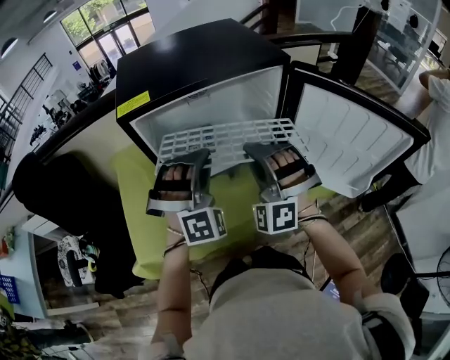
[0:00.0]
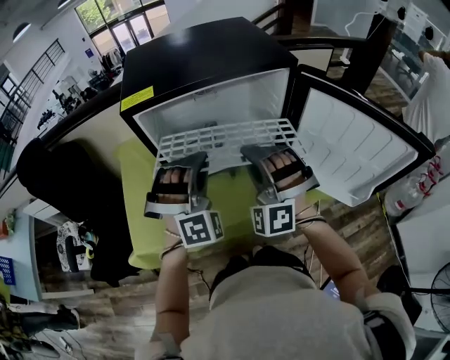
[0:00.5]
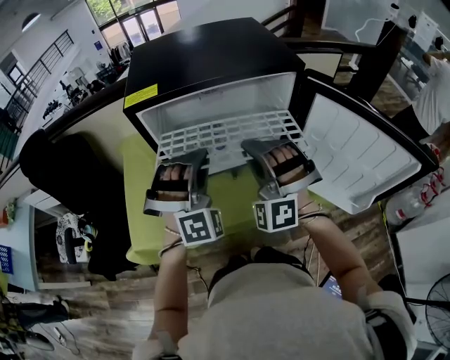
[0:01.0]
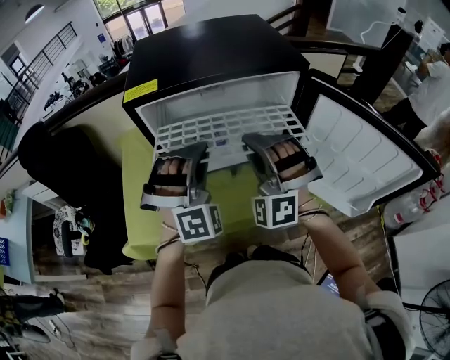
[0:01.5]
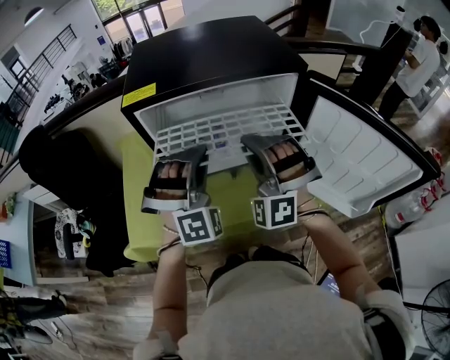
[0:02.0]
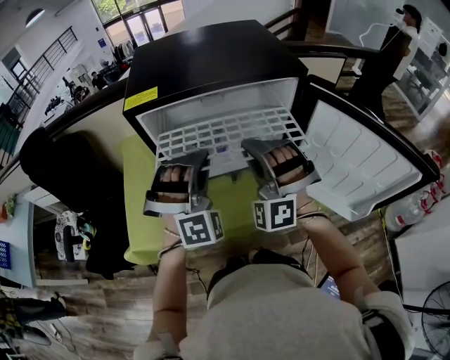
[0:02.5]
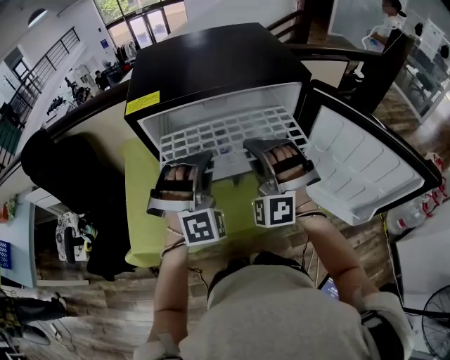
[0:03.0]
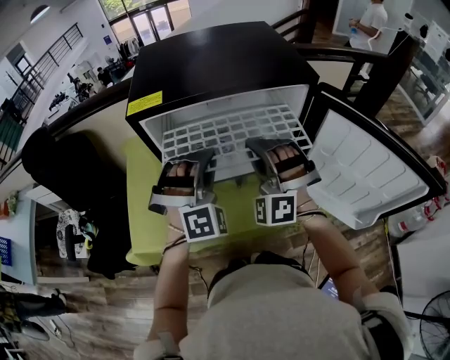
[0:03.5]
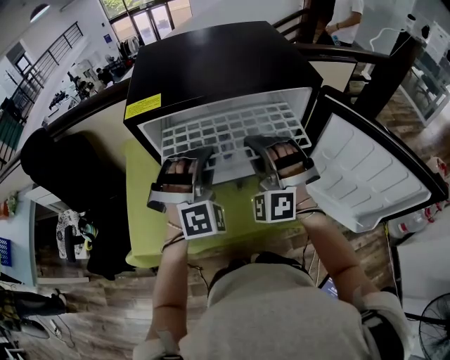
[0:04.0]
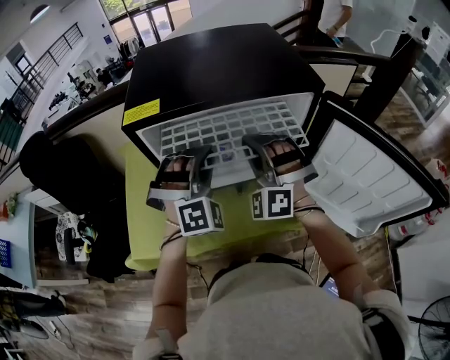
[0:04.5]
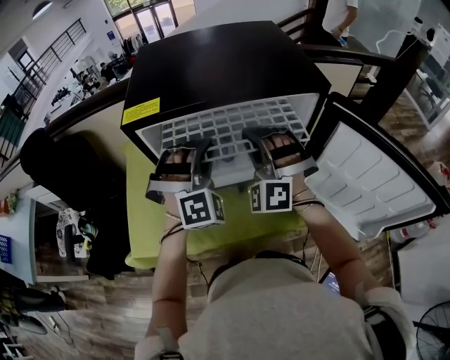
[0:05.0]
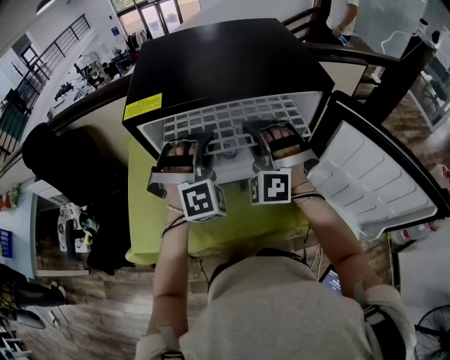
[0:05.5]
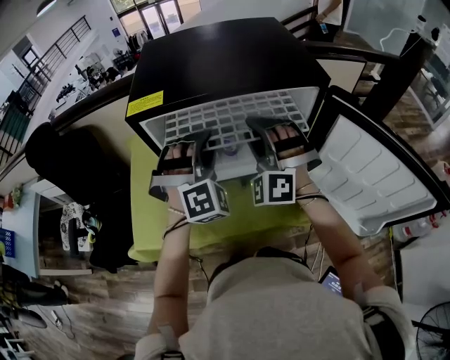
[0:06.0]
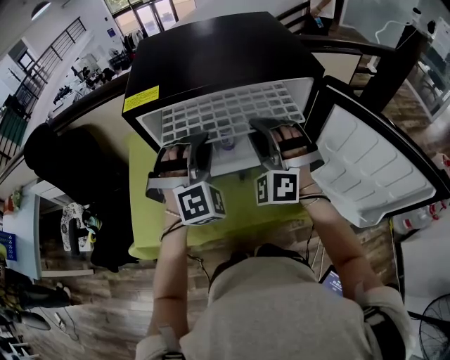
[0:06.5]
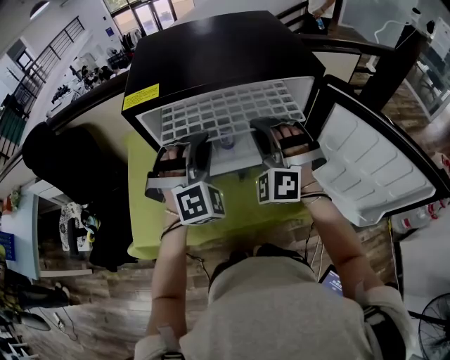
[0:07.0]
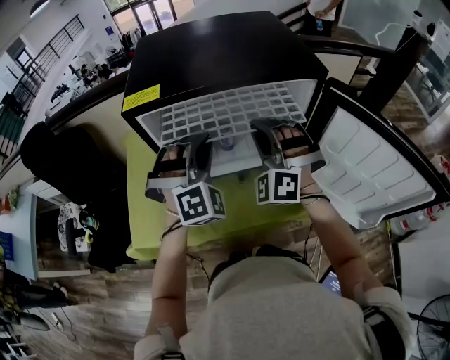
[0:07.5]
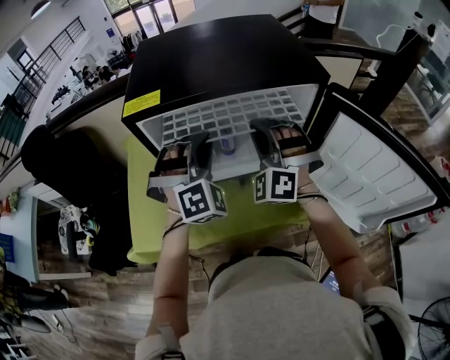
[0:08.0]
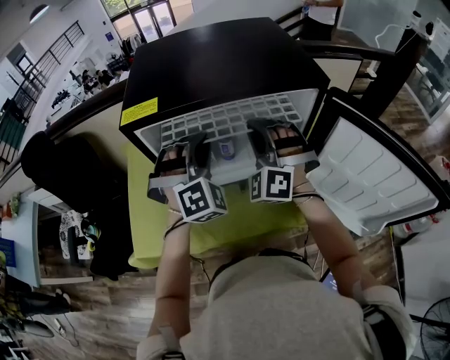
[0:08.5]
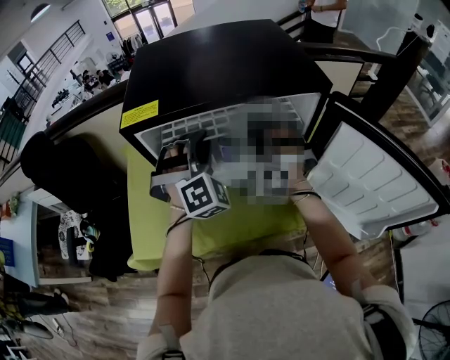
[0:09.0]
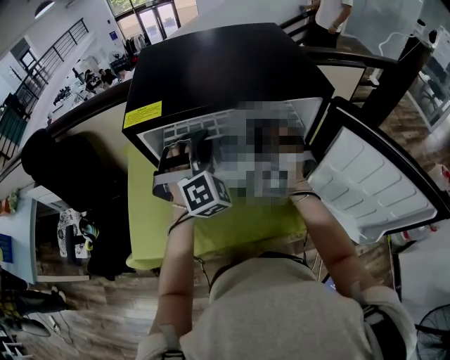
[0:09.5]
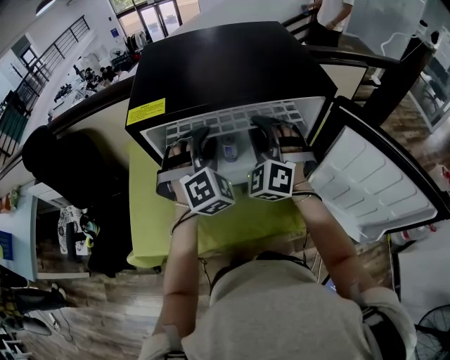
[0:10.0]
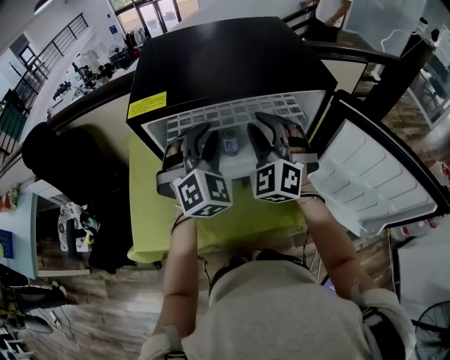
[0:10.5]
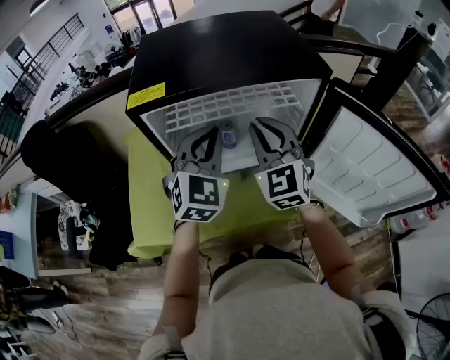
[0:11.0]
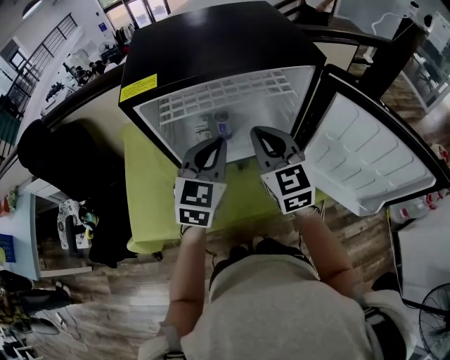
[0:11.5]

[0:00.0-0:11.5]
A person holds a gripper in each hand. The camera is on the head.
0:00.0 to 0:02.0: The grippers move only a little.
0:02.0 to 0:04.0: The left gripper changes place by roughly 5 cm. The right gripper moves forward, approximately 5 cm.
0:04.0 to 0:06.0: The right gripper opens its fingers. Meanwhile the left gripper opens its fingers.
0:06.0 to 0:07.5: The right gripper closes its fingers.
0:07.5 to 0:09.5: The grippers both shift forward by approximately 5 cm.
0:09.5 to 0:11.5: Both grippers move backward, some 10 cm. The left gripper twists some 50 degrees counterclockwise, seen from behind. Meanwhile the right gripper twists some 60 degrees clockwise, seen from behind.

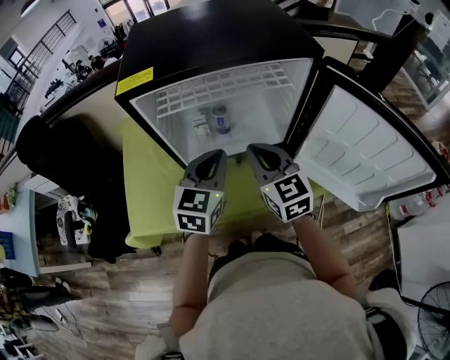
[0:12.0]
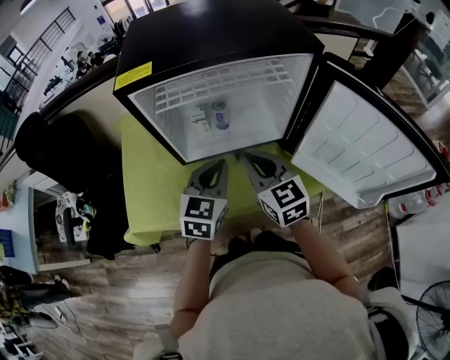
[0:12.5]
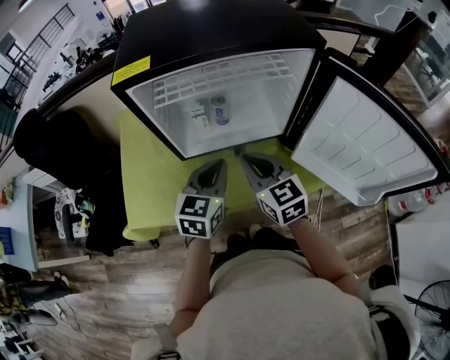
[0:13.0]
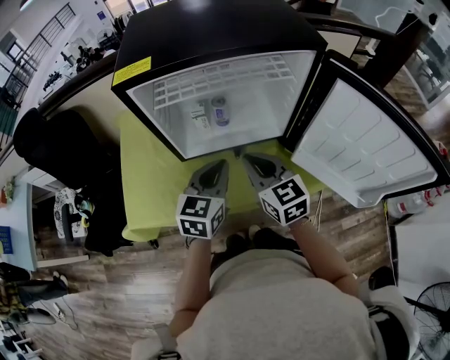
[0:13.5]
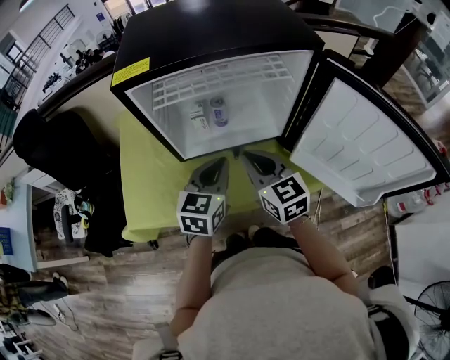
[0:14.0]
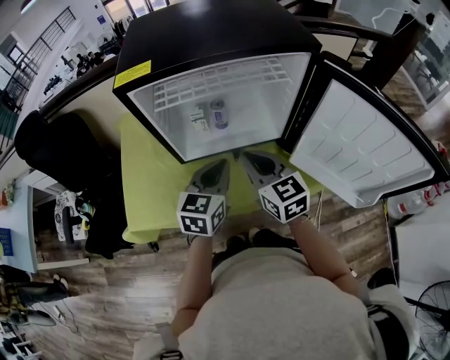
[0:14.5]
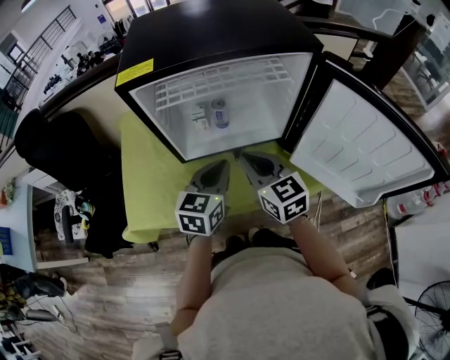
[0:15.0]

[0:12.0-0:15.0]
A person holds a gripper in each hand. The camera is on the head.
0:12.0 to 0:13.5: The left gripper shifts by about 5 cm.
0:13.5 to 0:15.0: The two grippers keep their place.

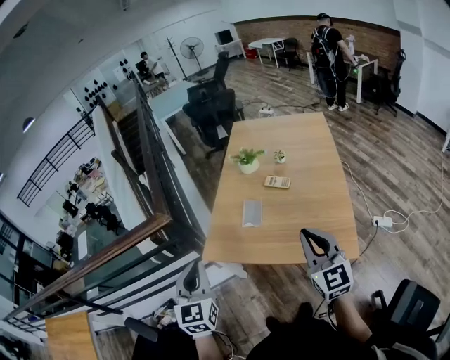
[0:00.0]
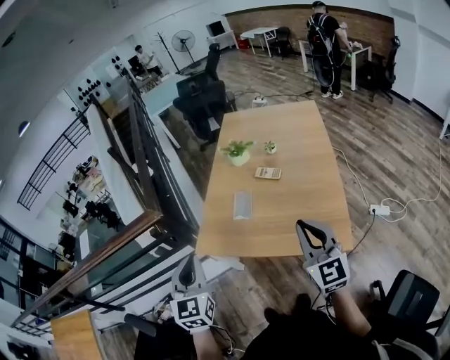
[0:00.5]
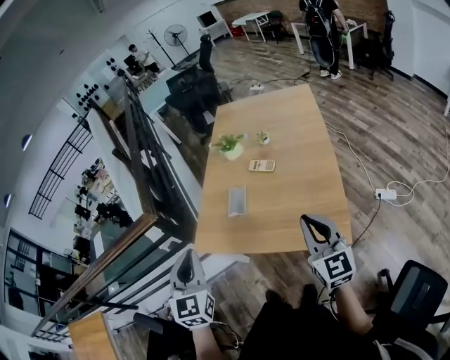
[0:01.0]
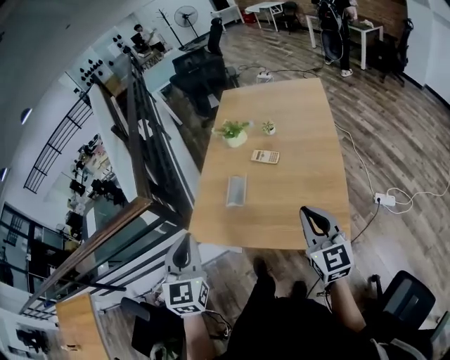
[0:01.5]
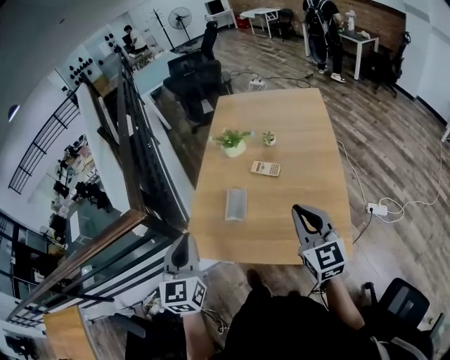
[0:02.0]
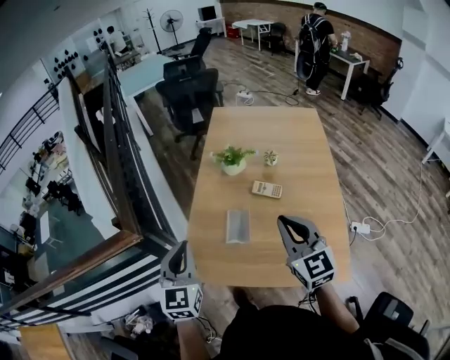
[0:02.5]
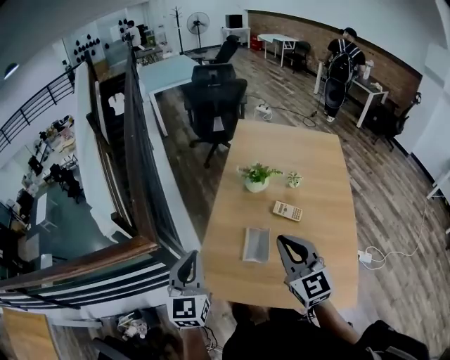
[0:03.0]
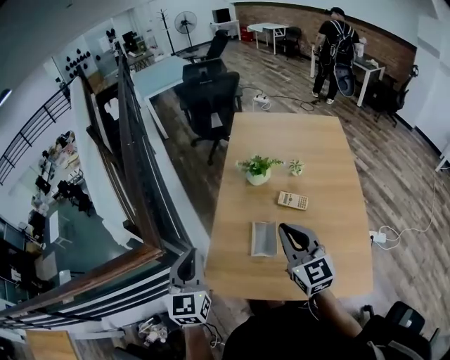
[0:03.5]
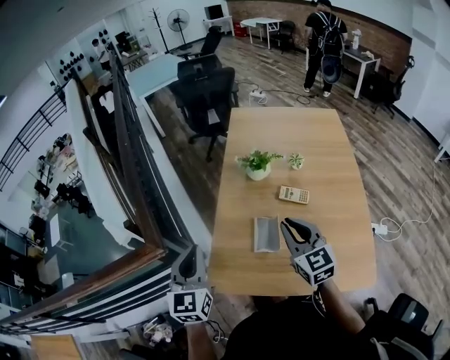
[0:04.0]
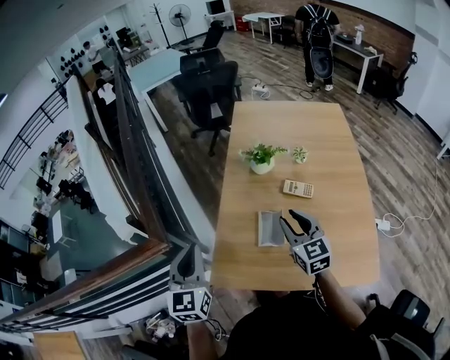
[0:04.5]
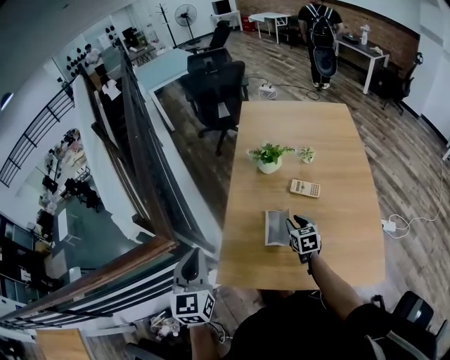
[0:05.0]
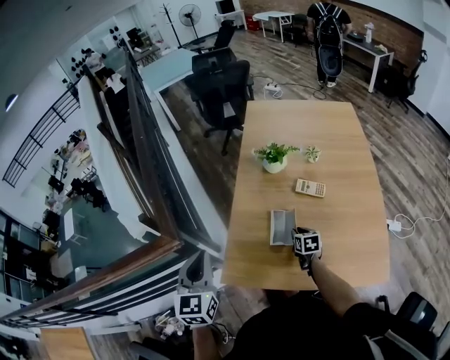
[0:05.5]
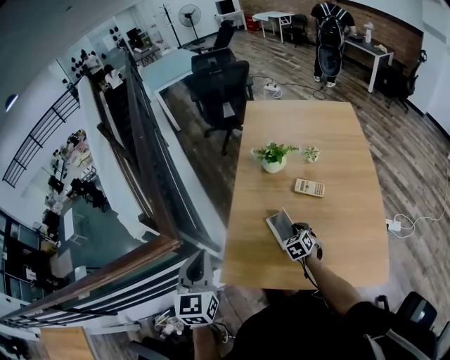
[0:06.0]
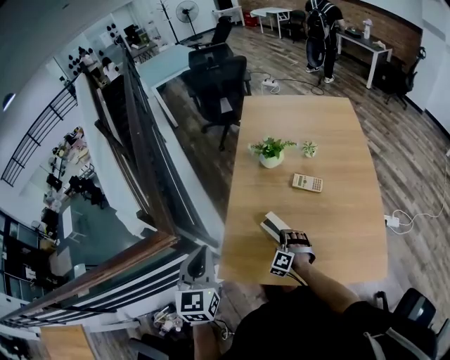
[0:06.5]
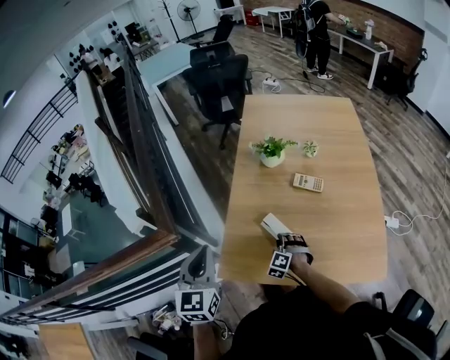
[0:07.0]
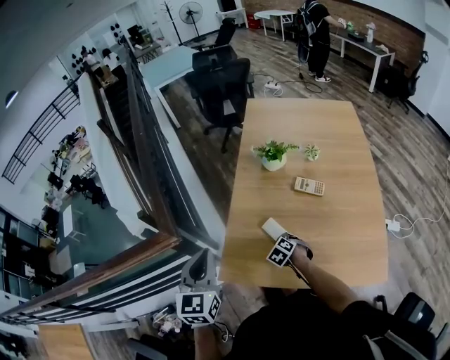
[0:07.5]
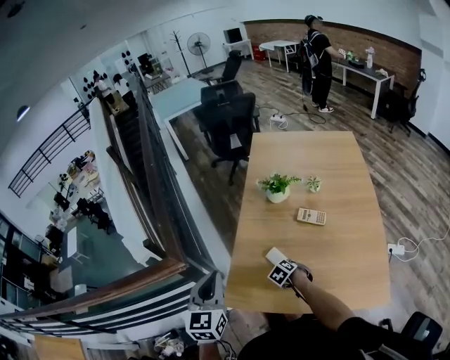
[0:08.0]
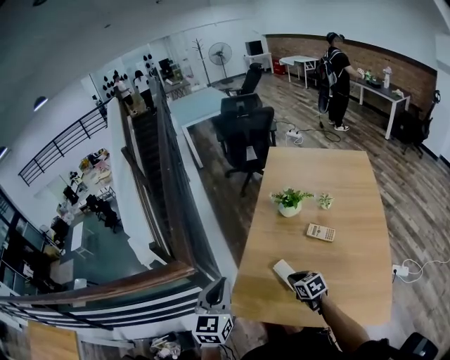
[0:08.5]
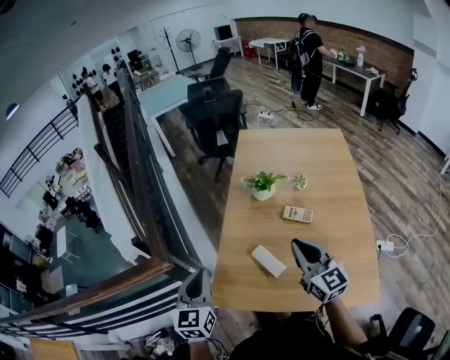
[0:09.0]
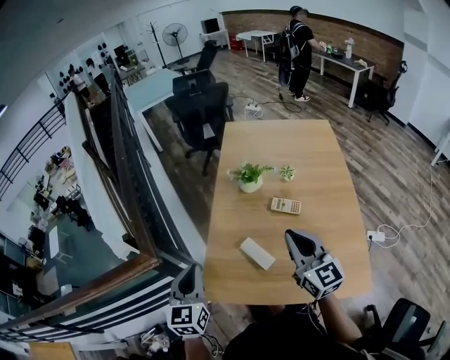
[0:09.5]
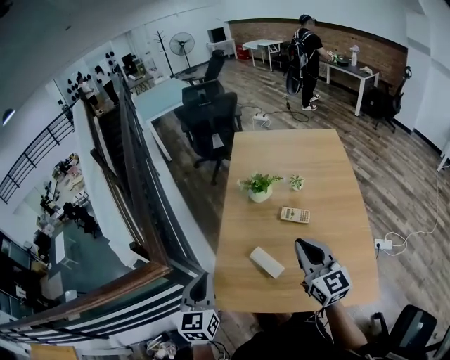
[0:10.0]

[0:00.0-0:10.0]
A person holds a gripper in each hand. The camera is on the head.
0:00.0 to 0:02.0: The grippers both shift forward and to the right by some 15 cm.
0:02.0 to 0:04.0: Both grippers move forward and to the left, approximately 25 cm.
0:04.0 to 0:06.0: The right gripper shifts approximately 25 cm downward, angles its fingers downward, by approximately 30 degrees, and opens, then closes again.
0:06.0 to 0:08.0: The right gripper travels to the left and downward by approximately 10 cm, and changes its angle by about 30 degrees.
0:08.0 to 0:10.0: The right gripper goes some 35 cm upward, and tips its fingers upward by some 70 degrees.

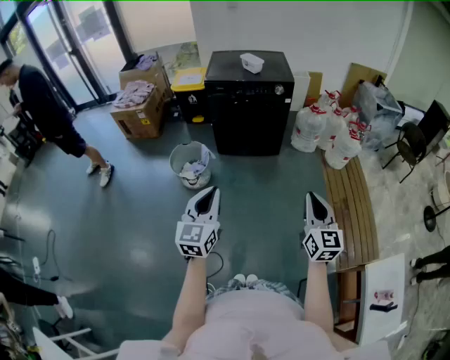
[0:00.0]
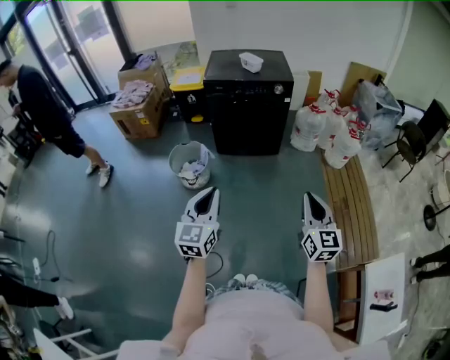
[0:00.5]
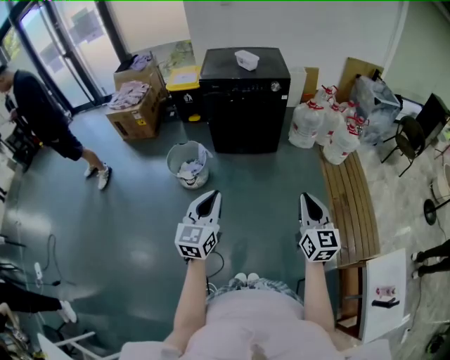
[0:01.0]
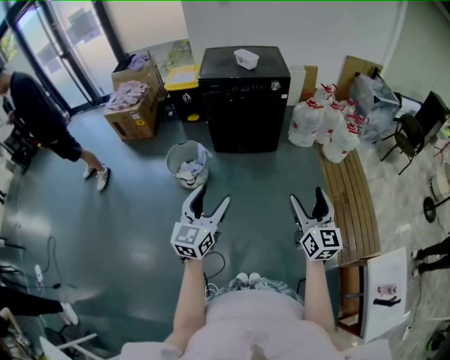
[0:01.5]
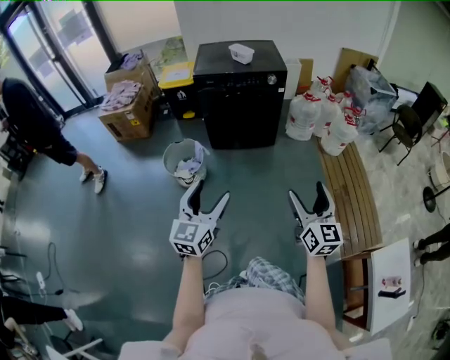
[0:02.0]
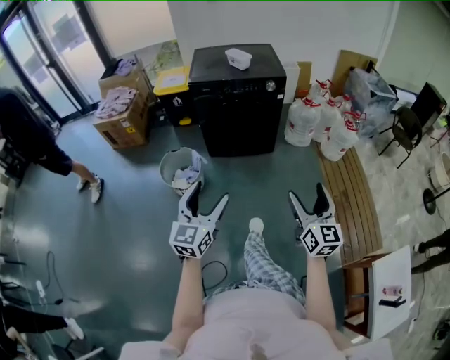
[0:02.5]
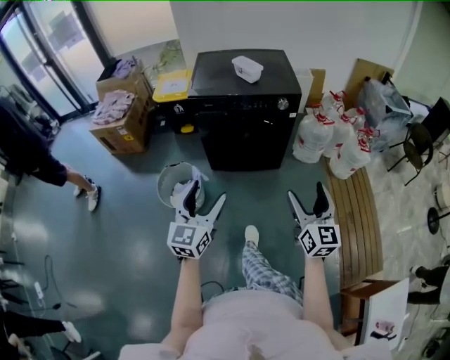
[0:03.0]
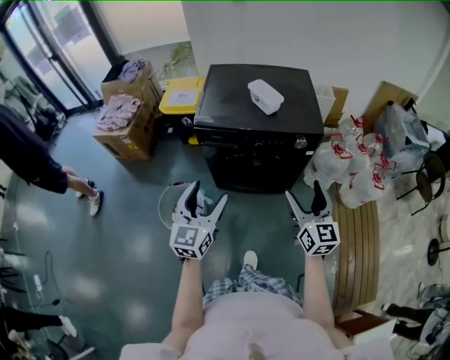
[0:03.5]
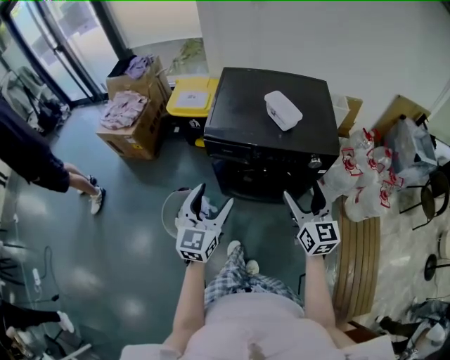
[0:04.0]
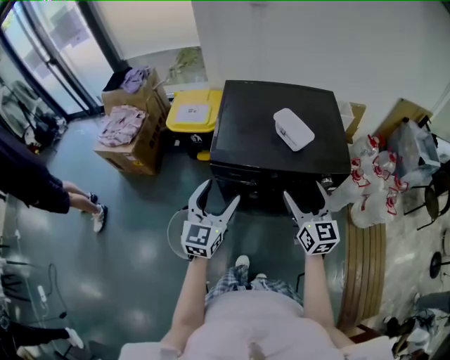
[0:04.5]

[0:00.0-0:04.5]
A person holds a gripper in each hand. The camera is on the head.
0:00.0 to 0:02.0: The left gripper opens up. The right gripper opens its fingers.
0:02.0 to 0:04.5: The two grippers travel together, forward, roughly 70 cm.
